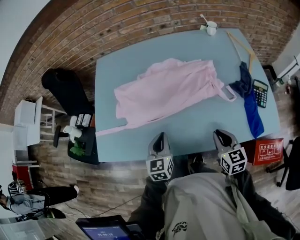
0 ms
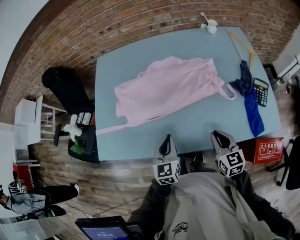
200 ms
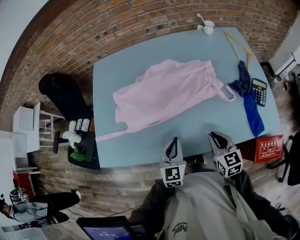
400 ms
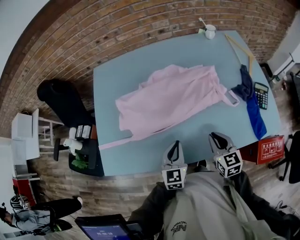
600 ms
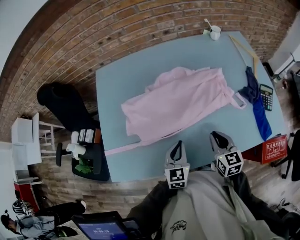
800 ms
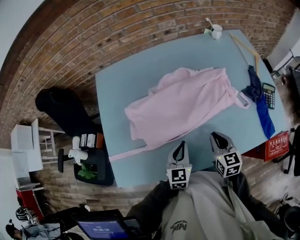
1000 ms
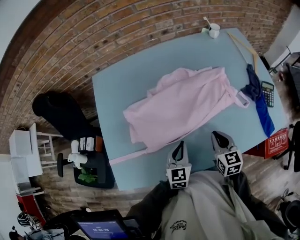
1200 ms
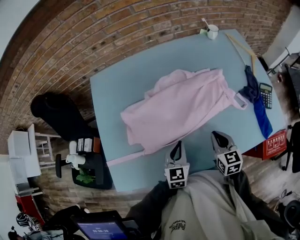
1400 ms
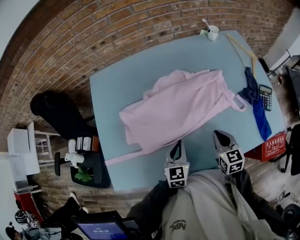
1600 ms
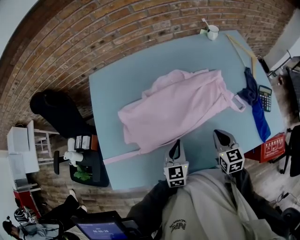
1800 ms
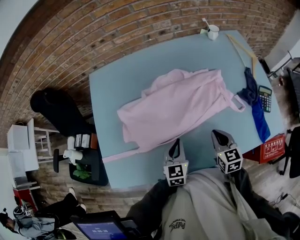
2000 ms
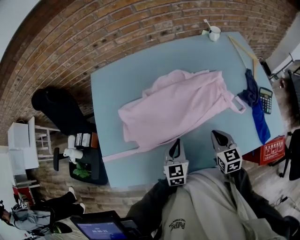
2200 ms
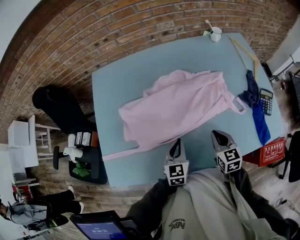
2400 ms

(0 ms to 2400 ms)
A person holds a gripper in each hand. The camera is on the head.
0 ms - 1200 ms: The right gripper moves to the left and forward, about 15 cm. The left gripper is displaced forward by approximately 5 cm.
1200 ms - 2400 ms: The grippers move only a little.

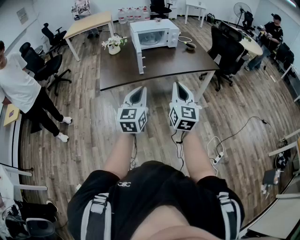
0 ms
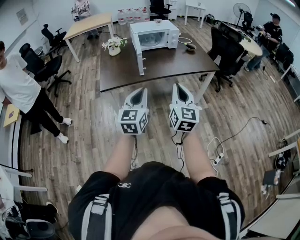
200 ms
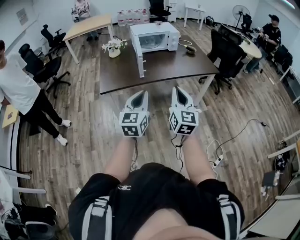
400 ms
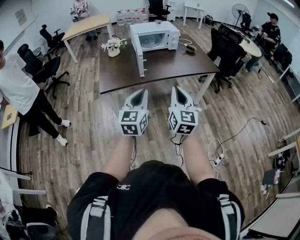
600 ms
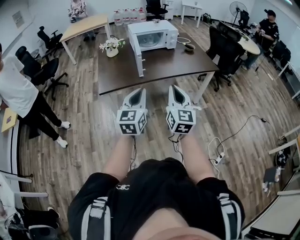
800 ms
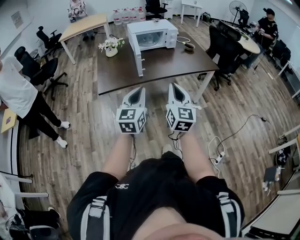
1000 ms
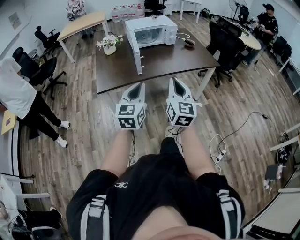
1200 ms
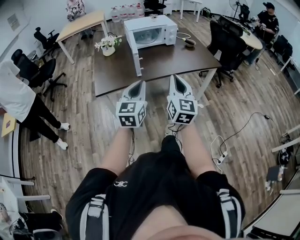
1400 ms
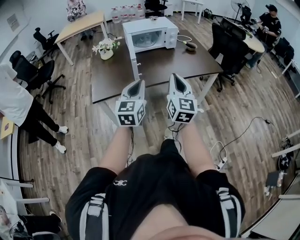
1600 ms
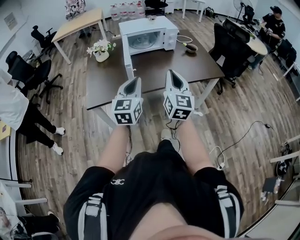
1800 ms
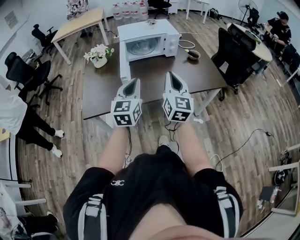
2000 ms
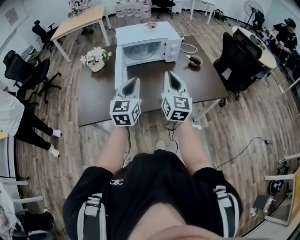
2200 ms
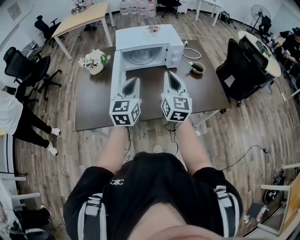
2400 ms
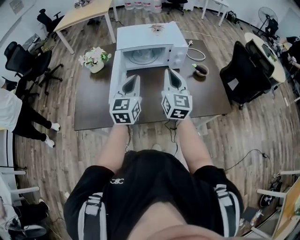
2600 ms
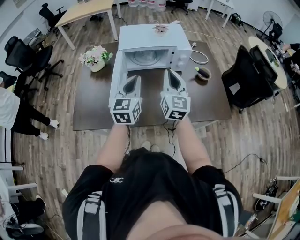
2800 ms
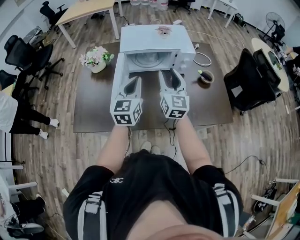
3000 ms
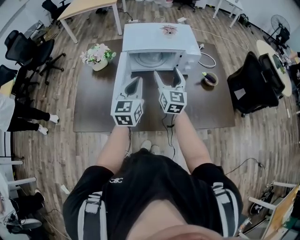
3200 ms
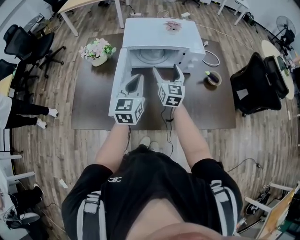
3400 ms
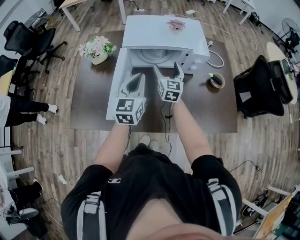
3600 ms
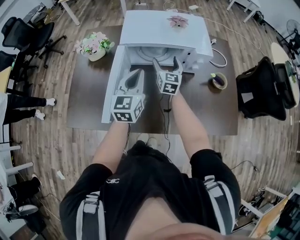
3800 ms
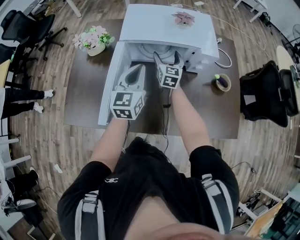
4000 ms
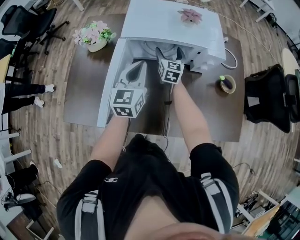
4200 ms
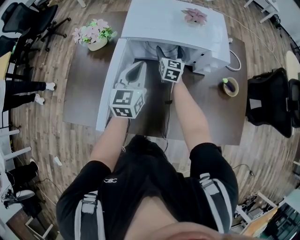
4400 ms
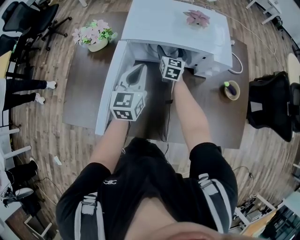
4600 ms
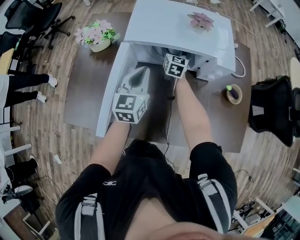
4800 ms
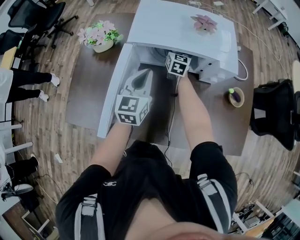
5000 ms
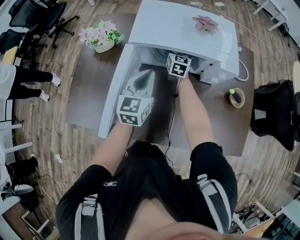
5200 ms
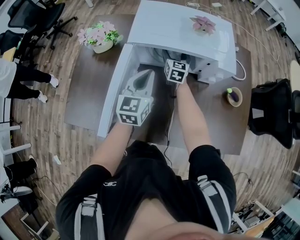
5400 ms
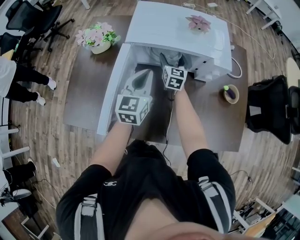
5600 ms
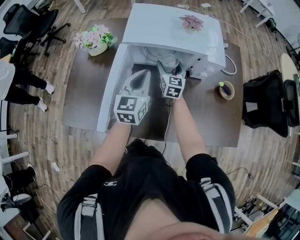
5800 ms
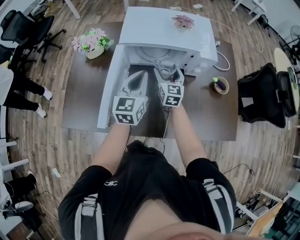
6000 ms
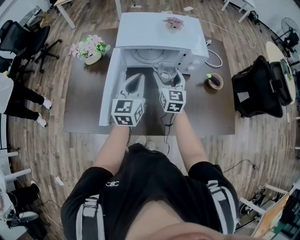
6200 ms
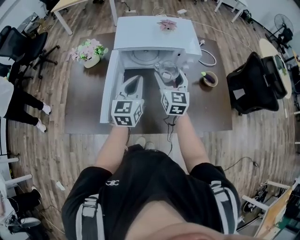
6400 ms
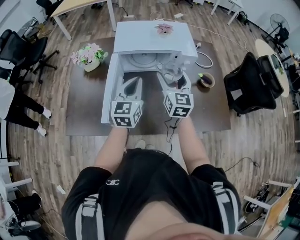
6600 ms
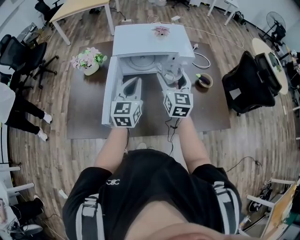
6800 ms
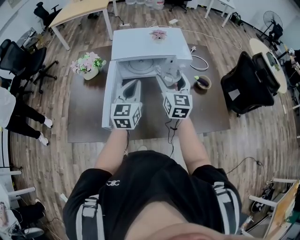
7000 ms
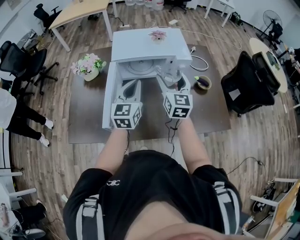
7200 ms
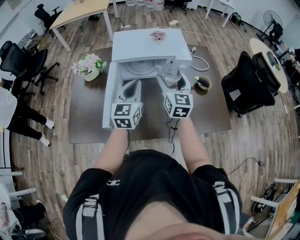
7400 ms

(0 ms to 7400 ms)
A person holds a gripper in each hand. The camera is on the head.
0 ms - 1400 ms: The grippers both shift forward by some 10 cm.
1400 ms - 3000 ms: Both grippers are carried forward, some 60 cm. The right gripper opens its fingers.
3000 ms - 4400 ms: The left gripper is displaced forward and downward by about 20 cm. Meanwhile the right gripper travels forward and downward by roughly 40 cm, swivels approximately 20 degrees, and opens its fingers.
4400 ms - 6000 ms: The left gripper changes place by approximately 5 cm. The right gripper moves backward, about 10 cm.
6000 ms - 7400 ms: The left gripper heads upward and backward, covering some 10 cm, while the right gripper is displaced upward, backward and to the right by about 20 cm.

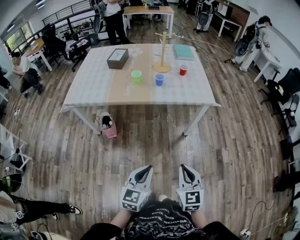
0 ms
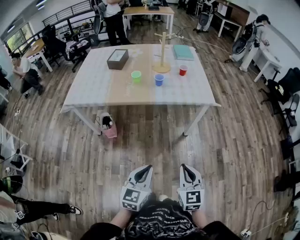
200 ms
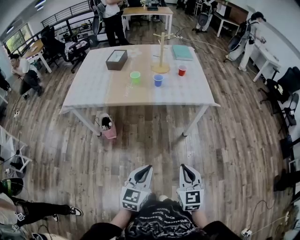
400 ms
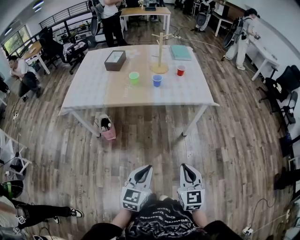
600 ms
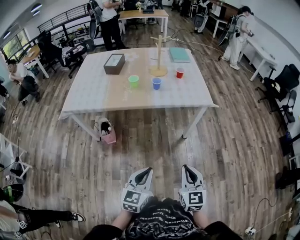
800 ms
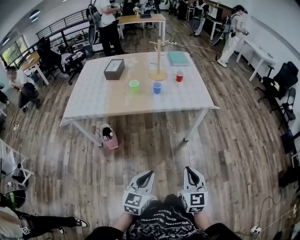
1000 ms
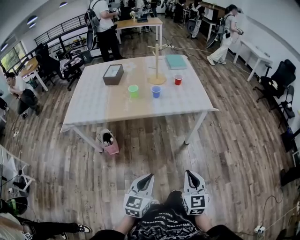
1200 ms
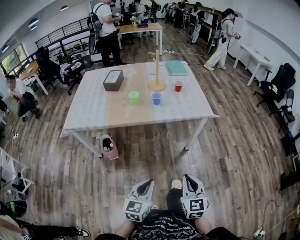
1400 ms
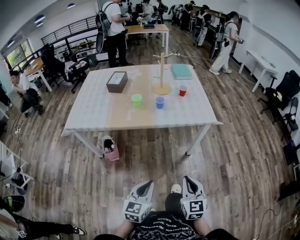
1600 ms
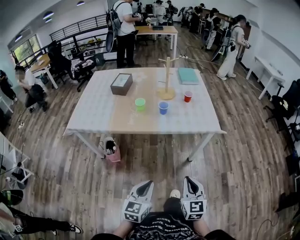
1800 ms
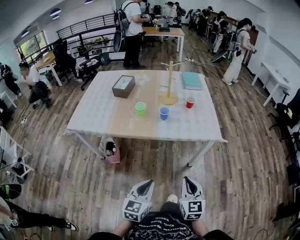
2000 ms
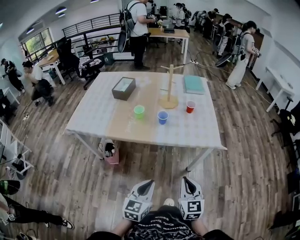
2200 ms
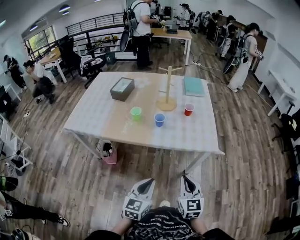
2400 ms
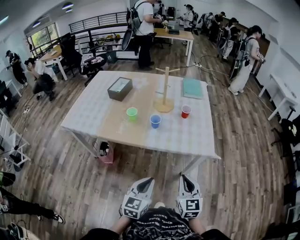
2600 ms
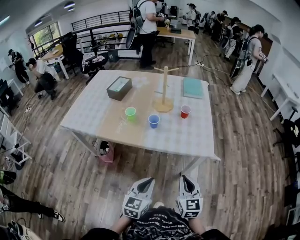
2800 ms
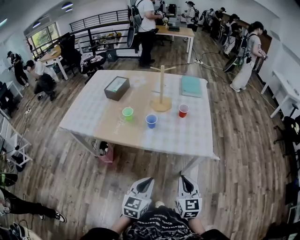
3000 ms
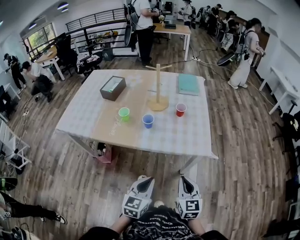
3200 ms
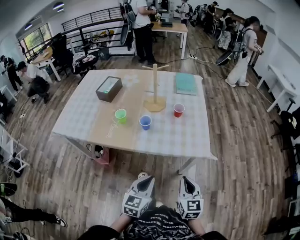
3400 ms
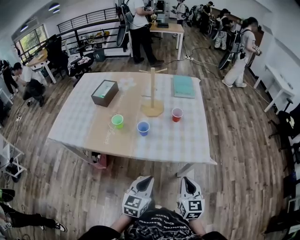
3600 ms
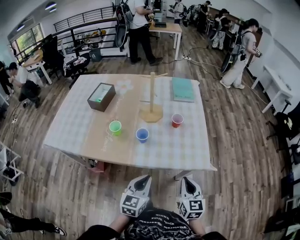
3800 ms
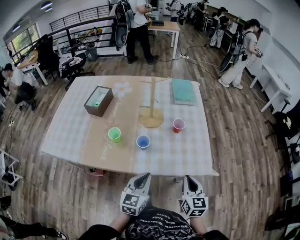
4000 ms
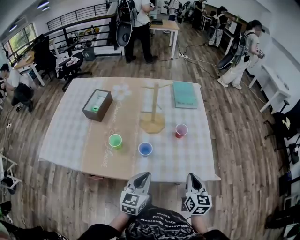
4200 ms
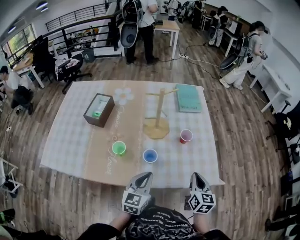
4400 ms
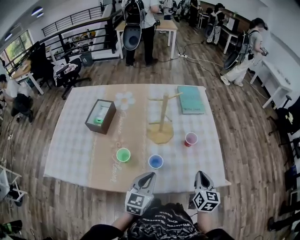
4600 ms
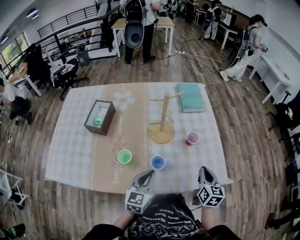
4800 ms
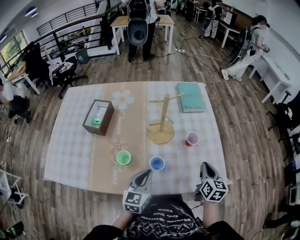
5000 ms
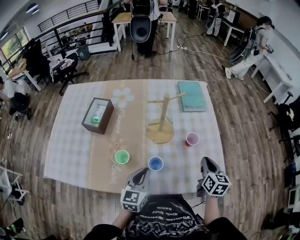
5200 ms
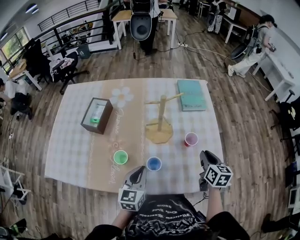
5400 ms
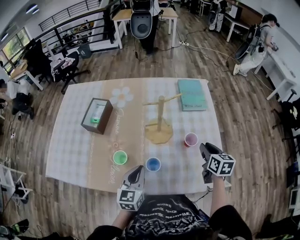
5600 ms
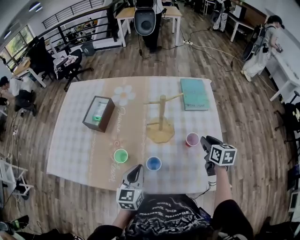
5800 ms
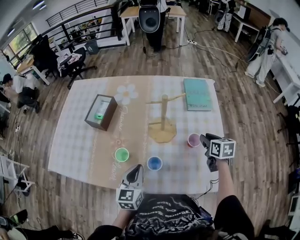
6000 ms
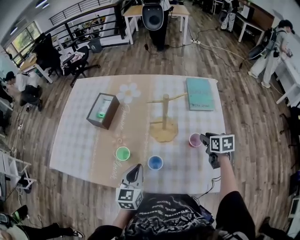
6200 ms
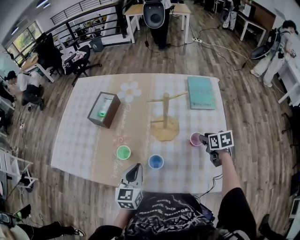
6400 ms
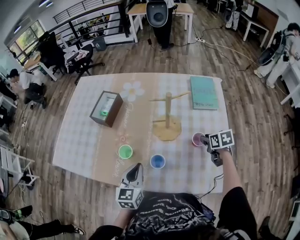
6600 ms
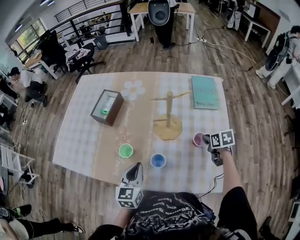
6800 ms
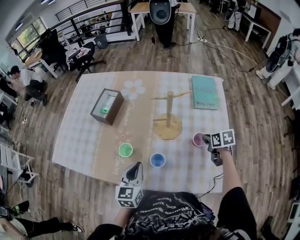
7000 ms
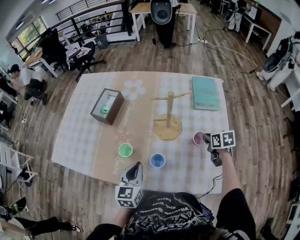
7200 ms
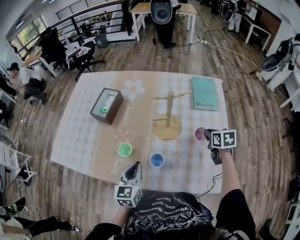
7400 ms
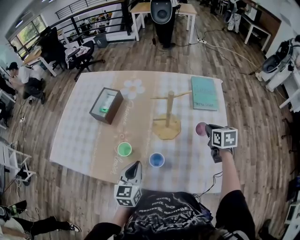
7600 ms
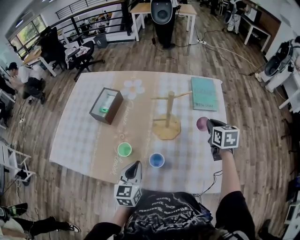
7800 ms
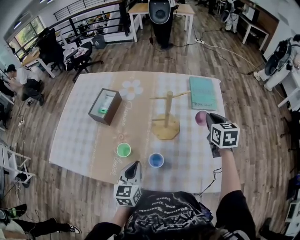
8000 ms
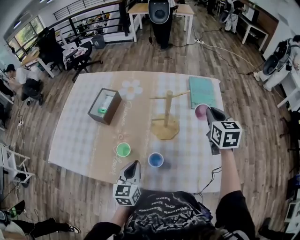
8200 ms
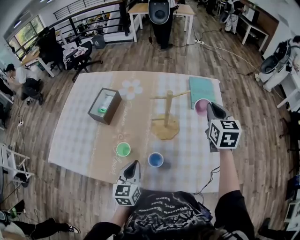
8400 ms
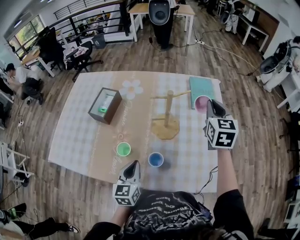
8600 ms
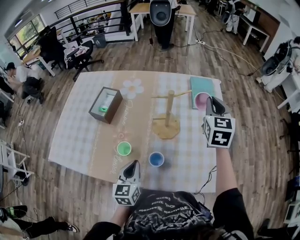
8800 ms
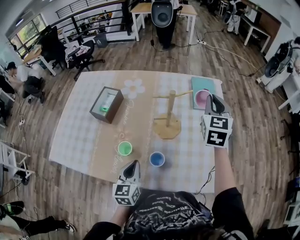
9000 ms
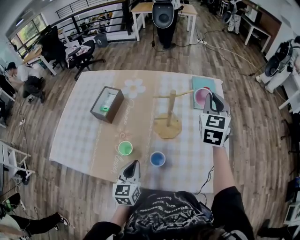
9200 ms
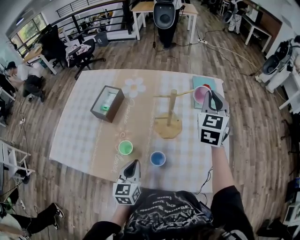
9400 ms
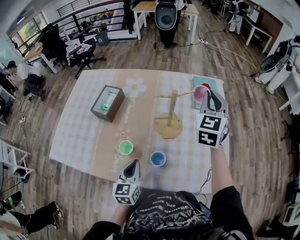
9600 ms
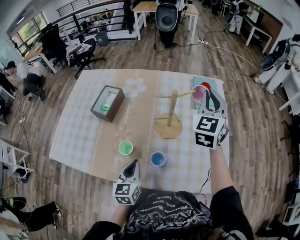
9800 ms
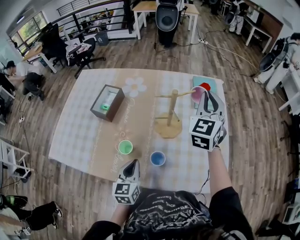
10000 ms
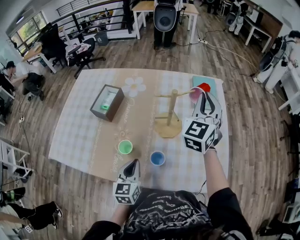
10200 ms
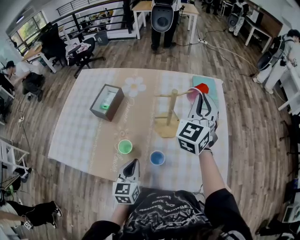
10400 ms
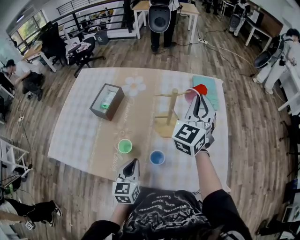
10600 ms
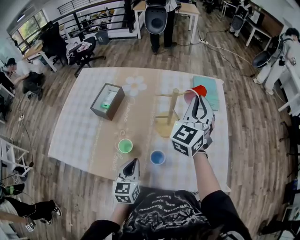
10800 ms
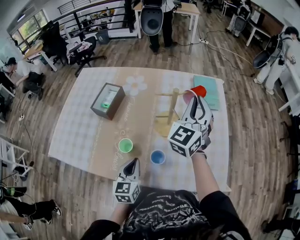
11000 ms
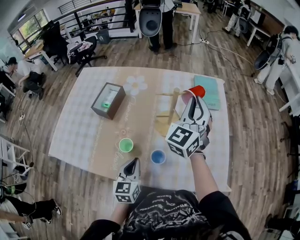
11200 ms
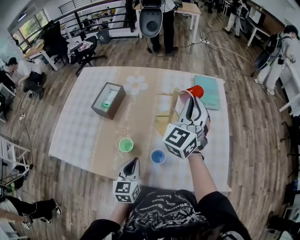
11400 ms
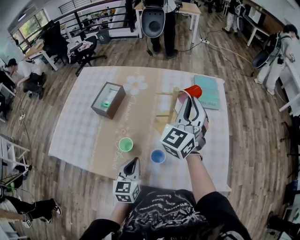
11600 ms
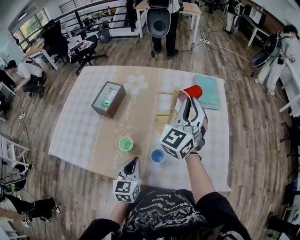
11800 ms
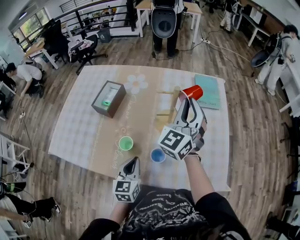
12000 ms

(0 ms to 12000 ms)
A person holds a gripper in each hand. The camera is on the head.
0 ms - 1600 ms: The two grippers go some 5 cm forward.
1600 ms - 3000 ms: The two grippers go approximately 30 cm forward and to the right.
3000 ms - 4400 ms: The left gripper goes roughly 35 cm forward and to the left. The right gripper moves forward, some 30 cm, and swivels about 20 degrees.
4400 ms - 6000 ms: The right gripper moves forward, roughly 25 cm, changes its angle by about 30 degrees, and opens. The left gripper travels forward and to the left by approximately 10 cm.
6000 ms - 7600 ms: The right gripper reaches some 5 cm downward, then returns, and closes its fingers.
7600 ms - 9000 ms: The right gripper travels upward by roughly 20 cm, and rotates some 40 degrees.
9000 ms - 10400 ms: The right gripper is displaced to the left by some 5 cm.
10400 ms - 12000 ms: The right gripper moves roughly 5 cm.

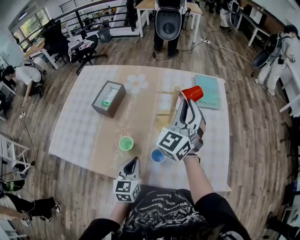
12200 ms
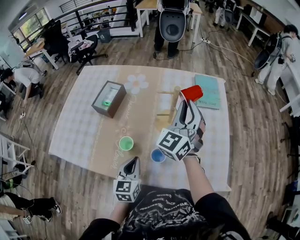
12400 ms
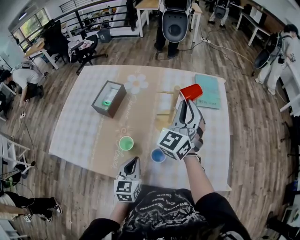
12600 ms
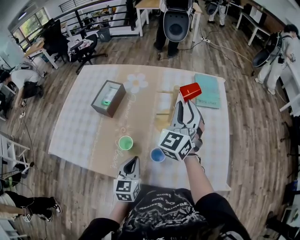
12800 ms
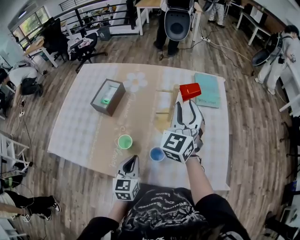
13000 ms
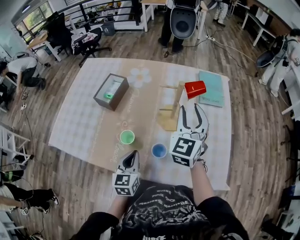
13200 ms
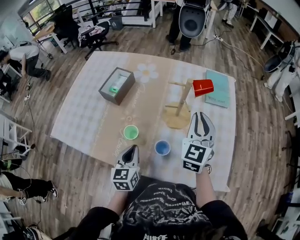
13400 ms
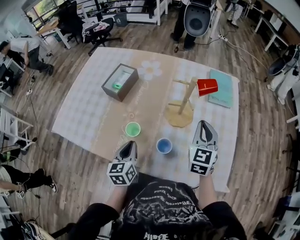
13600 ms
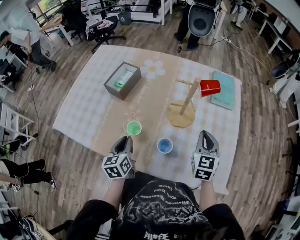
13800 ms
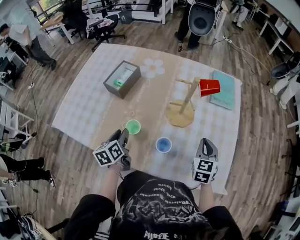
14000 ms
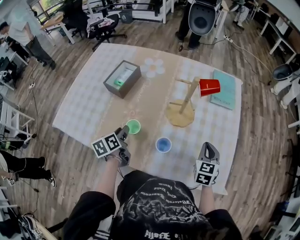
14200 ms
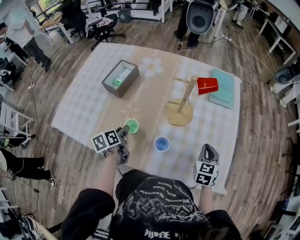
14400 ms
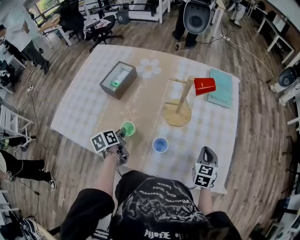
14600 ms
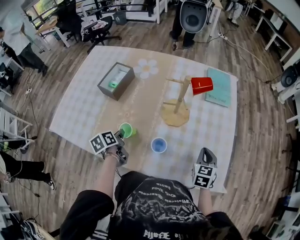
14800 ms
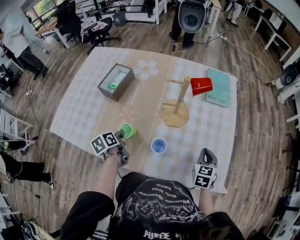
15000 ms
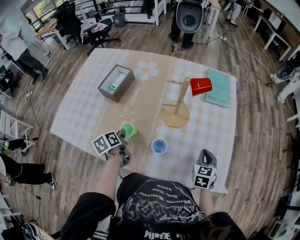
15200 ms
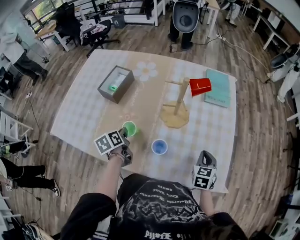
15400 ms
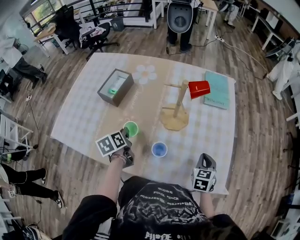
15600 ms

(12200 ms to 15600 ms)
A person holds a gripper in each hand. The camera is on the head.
12200 ms - 13800 ms: The left gripper shifts approximately 10 cm to the left, and rotates about 20 degrees, while the right gripper is displaced downward and backward by approximately 20 cm, rotates roughly 40 degrees, and opens and closes again.
13800 ms - 15600 ms: The left gripper heads forward, covering some 10 cm, turns by about 20 degrees, and opens and closes again. The right gripper travels downward, to the right and backward by approximately 15 cm.
